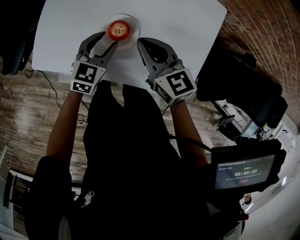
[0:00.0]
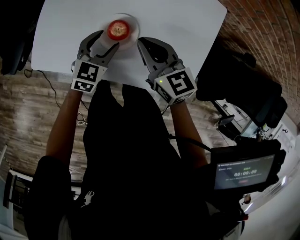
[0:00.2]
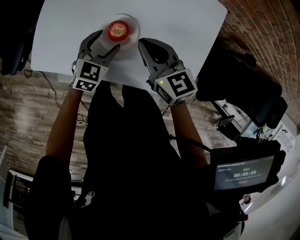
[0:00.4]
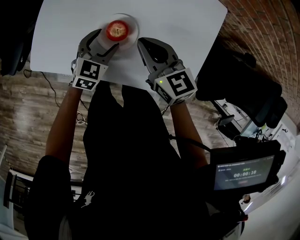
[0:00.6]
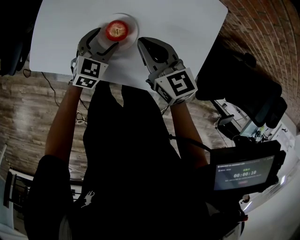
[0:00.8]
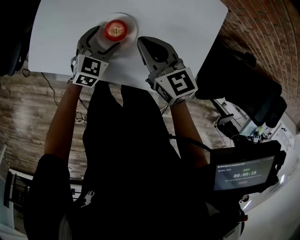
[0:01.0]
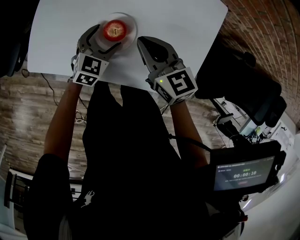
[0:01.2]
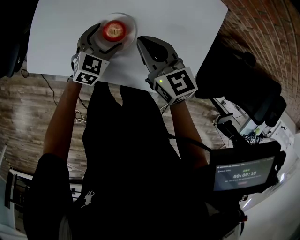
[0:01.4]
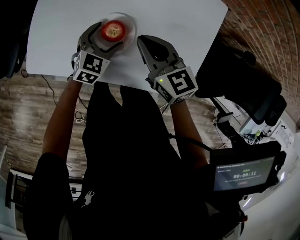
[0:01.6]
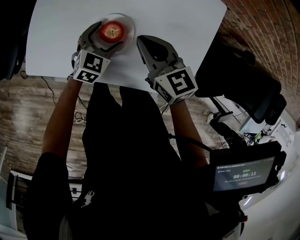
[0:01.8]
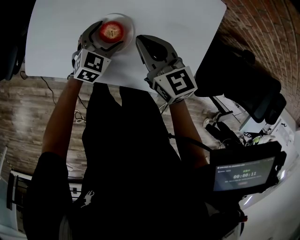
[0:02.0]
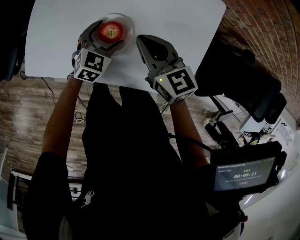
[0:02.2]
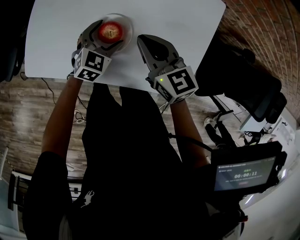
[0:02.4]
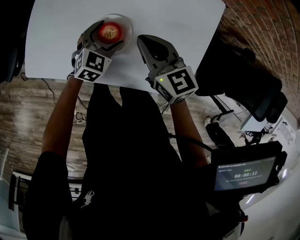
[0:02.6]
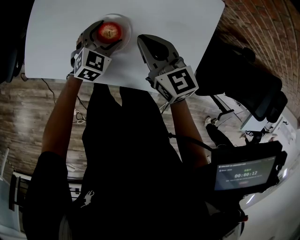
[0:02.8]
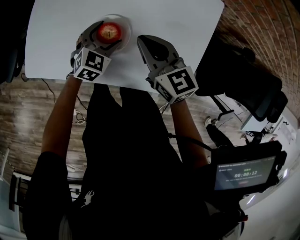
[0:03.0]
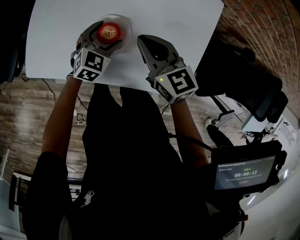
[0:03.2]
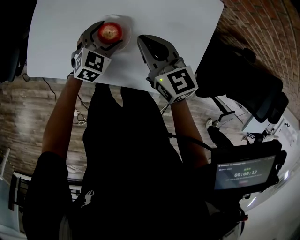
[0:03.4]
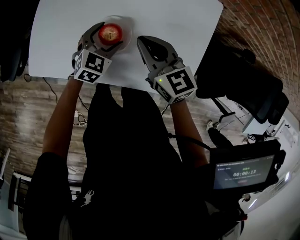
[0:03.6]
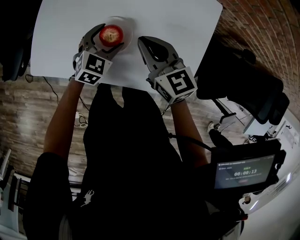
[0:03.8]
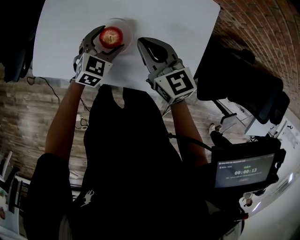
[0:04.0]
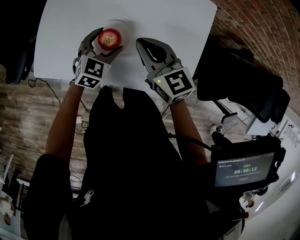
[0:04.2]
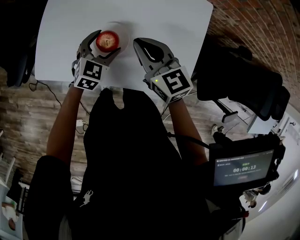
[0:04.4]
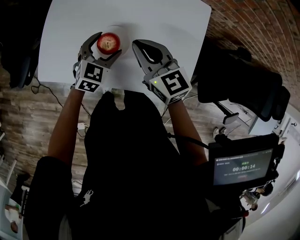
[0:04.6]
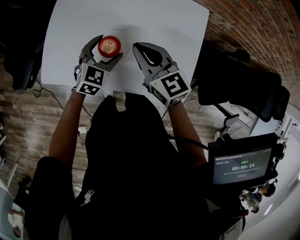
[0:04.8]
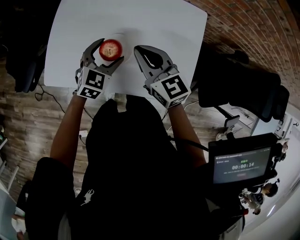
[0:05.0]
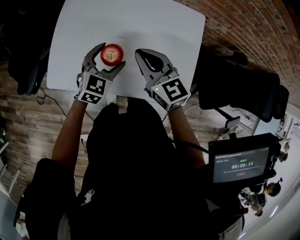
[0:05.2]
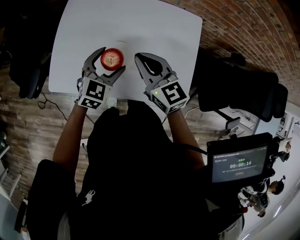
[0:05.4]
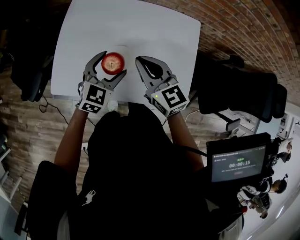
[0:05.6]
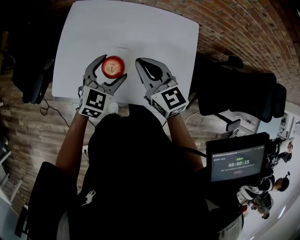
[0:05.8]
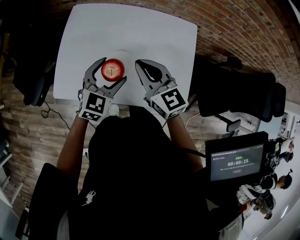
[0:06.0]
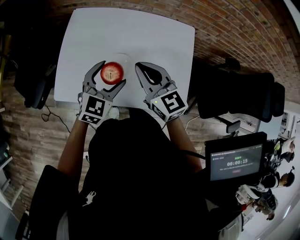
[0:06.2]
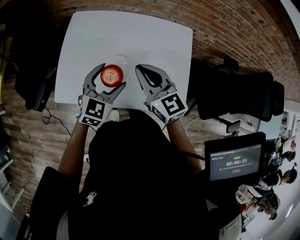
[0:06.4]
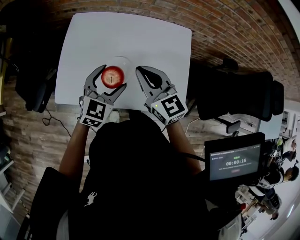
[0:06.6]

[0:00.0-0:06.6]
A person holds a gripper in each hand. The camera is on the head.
0:00.0 to 0:01.6: The left gripper opens its fingers.
0:01.6 to 0:03.2: The grippers make only small movements.
0:03.2 to 0:05.0: The grippers both shift upward by approximately 10 cm.
0:05.0 to 0:06.6: The right gripper moves upward, roughly 5 cm. The left gripper moves upward and backward, approximately 10 cm.
